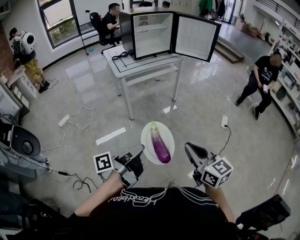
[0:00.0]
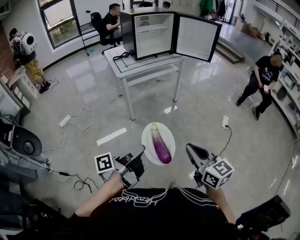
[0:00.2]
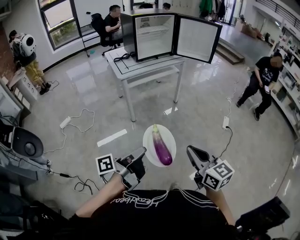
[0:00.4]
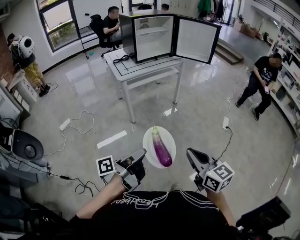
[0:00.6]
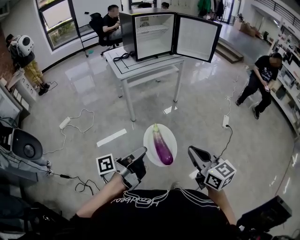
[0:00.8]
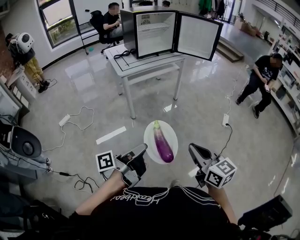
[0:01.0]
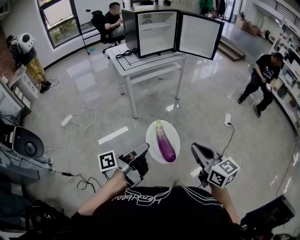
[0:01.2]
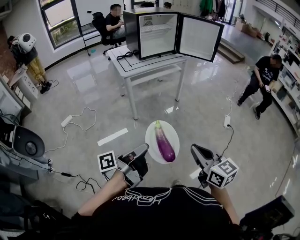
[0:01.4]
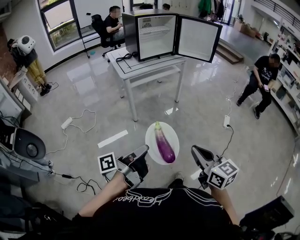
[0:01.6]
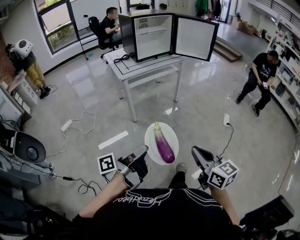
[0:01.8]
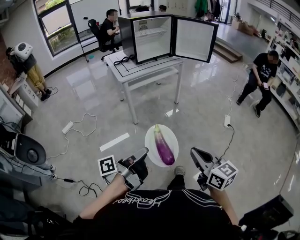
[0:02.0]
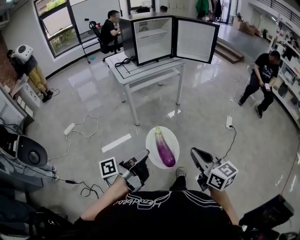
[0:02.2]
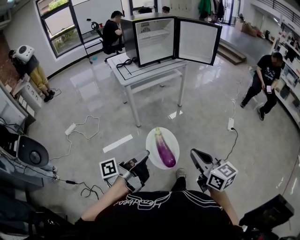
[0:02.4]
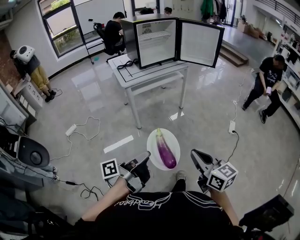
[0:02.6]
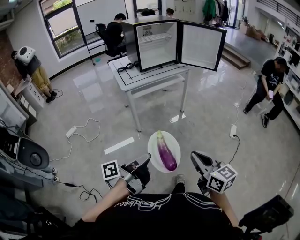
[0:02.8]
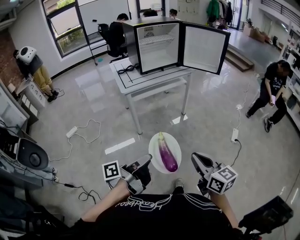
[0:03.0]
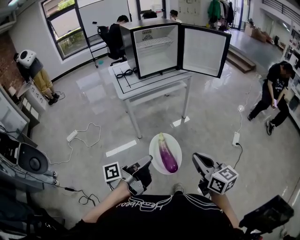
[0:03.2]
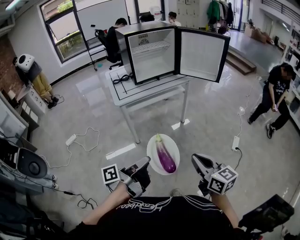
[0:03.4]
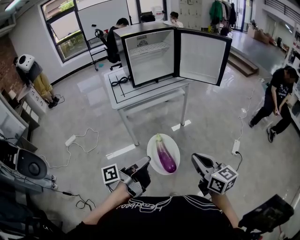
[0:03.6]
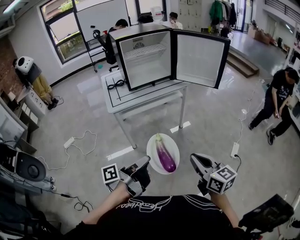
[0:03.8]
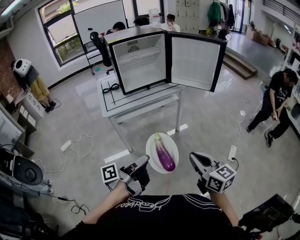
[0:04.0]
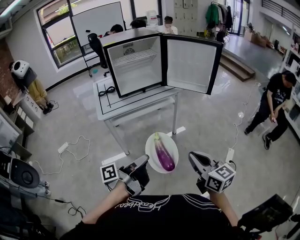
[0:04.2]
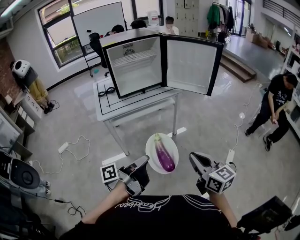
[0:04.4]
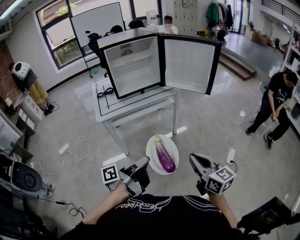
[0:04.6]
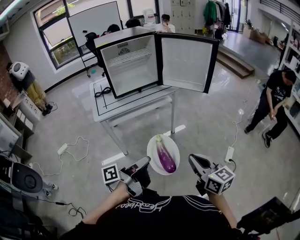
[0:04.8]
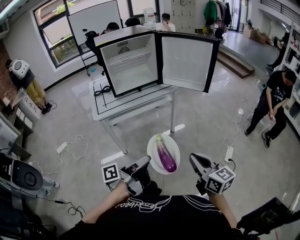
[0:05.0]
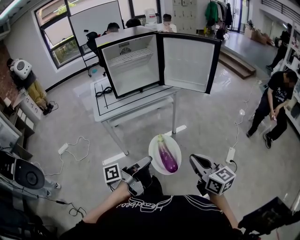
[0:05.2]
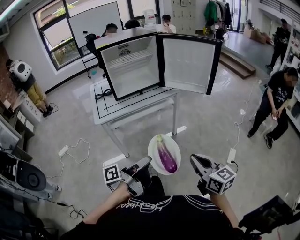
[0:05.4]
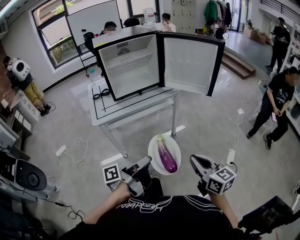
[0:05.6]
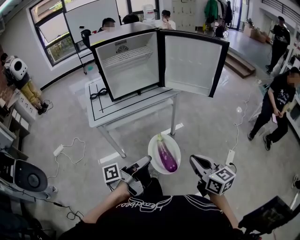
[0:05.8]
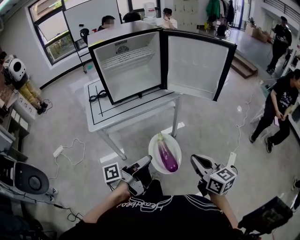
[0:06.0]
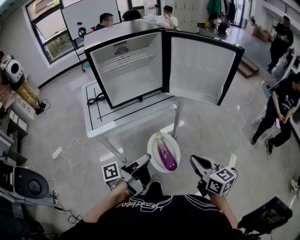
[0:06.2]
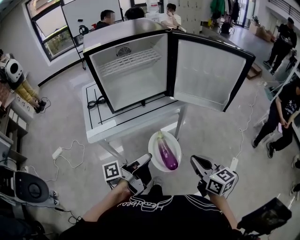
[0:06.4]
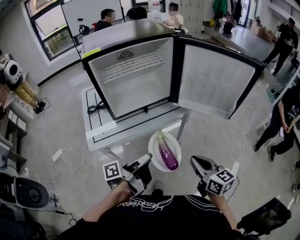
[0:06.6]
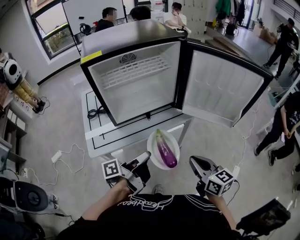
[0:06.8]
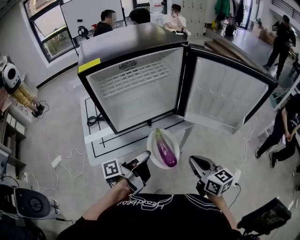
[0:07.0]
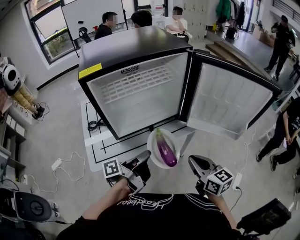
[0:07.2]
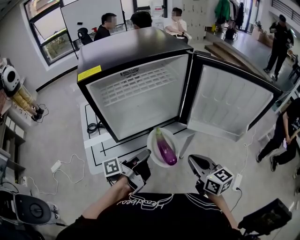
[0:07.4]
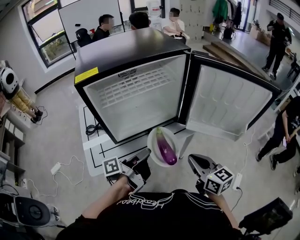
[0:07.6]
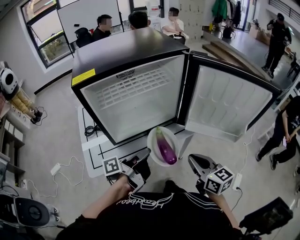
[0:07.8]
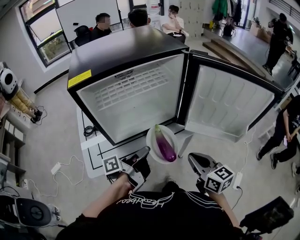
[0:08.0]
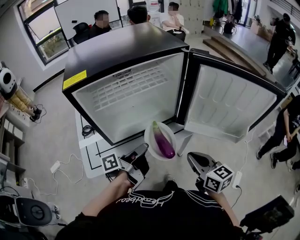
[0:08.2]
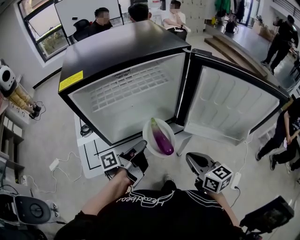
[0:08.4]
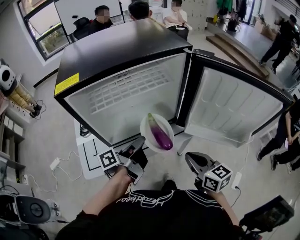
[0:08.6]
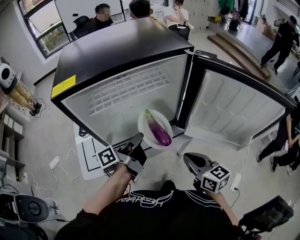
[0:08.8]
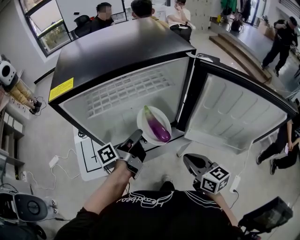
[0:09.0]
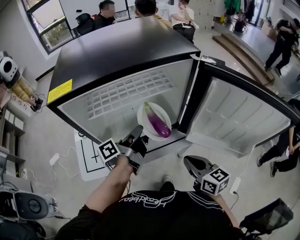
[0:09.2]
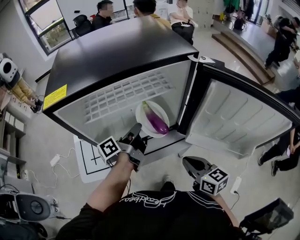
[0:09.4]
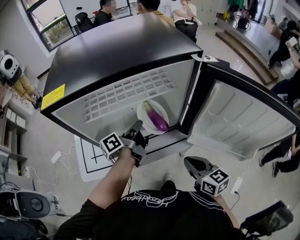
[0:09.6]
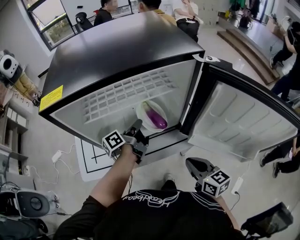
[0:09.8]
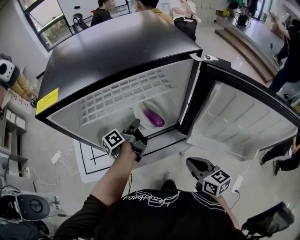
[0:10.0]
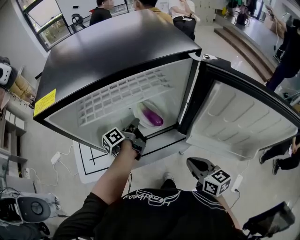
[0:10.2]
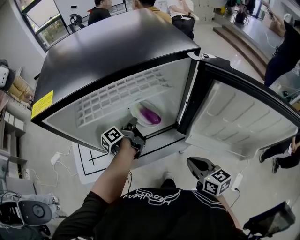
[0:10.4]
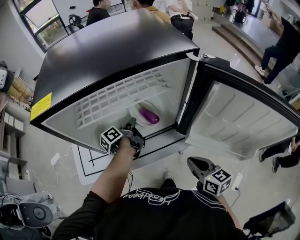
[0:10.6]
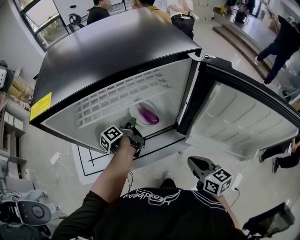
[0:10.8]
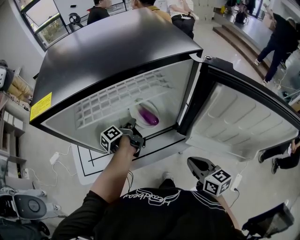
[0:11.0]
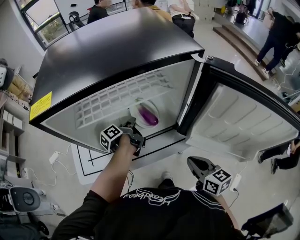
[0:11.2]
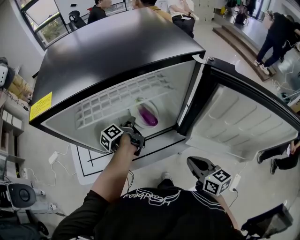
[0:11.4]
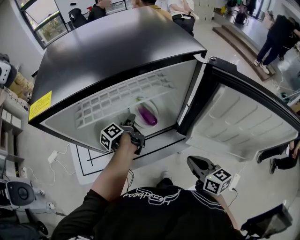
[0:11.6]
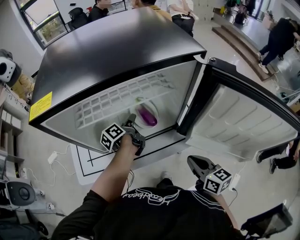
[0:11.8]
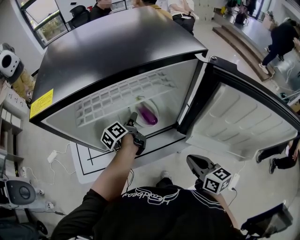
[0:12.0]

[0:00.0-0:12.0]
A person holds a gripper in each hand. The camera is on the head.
0:01.6 to 0:03.0: The right gripper changes place by some 15 cm.
0:03.0 to 0:04.4: The right gripper ends up about 30 cm from where it was.
0:04.4 to 0:06.0: The right gripper moves approximately 15 cm.
0:06.0 to 0:07.6: The right gripper ends up some 35 cm from where it was.
0:07.6 to 0:09.0: The right gripper moves about 10 cm.
0:09.0 to 0:10.4: The right gripper changes place by roughly 5 cm.

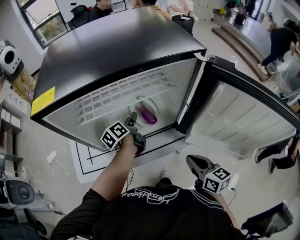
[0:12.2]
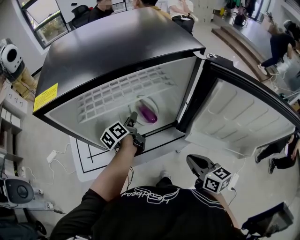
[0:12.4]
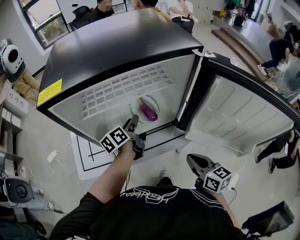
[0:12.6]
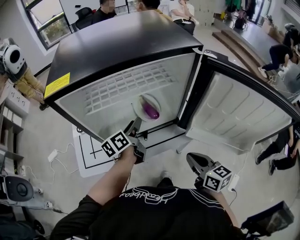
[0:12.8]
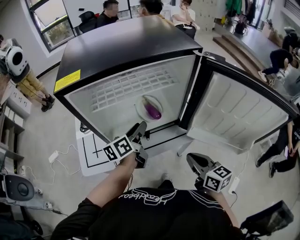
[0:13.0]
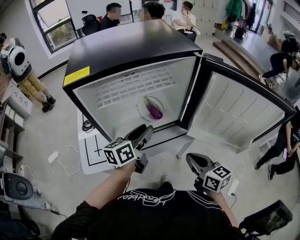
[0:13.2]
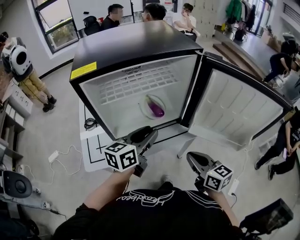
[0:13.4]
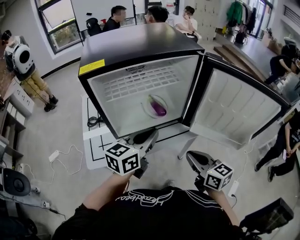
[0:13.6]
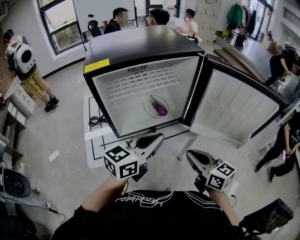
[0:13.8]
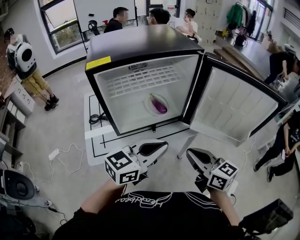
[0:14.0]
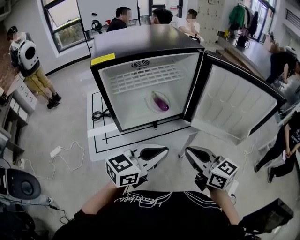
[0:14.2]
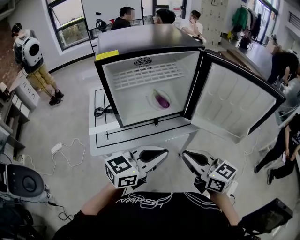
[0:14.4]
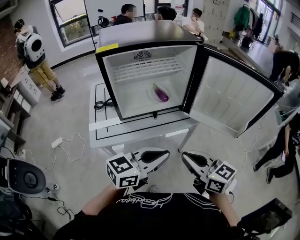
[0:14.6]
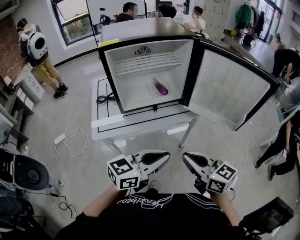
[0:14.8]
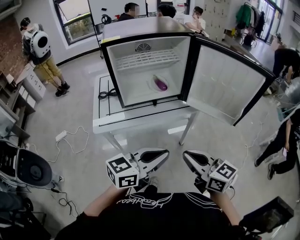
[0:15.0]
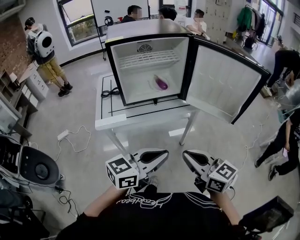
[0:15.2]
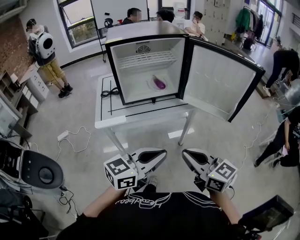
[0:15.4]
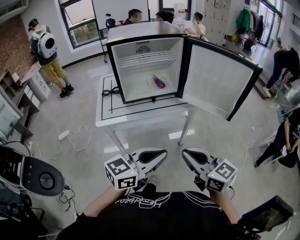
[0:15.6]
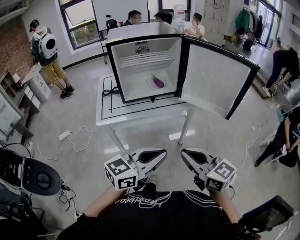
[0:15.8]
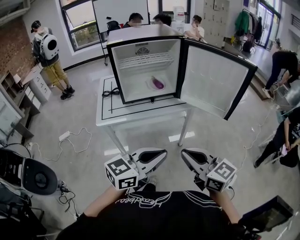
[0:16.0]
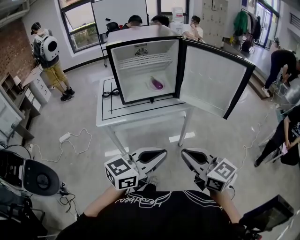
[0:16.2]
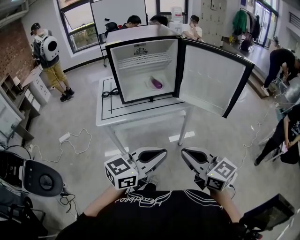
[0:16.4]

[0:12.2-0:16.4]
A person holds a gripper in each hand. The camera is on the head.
0:12.2 to 0:13.6: The right gripper changes place by approximately 10 cm.
0:13.6 to 0:15.0: The right gripper shifts by some 20 cm.
0:15.0 to 0:16.4: The right gripper ends up approximately 10 cm from where it was.

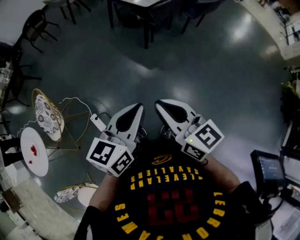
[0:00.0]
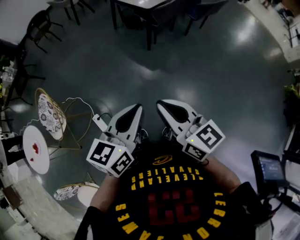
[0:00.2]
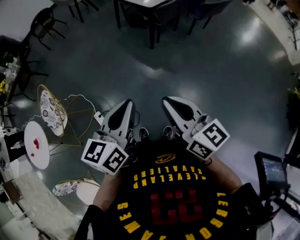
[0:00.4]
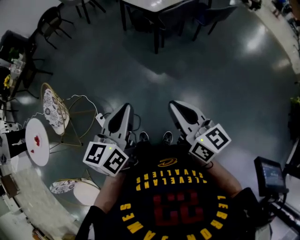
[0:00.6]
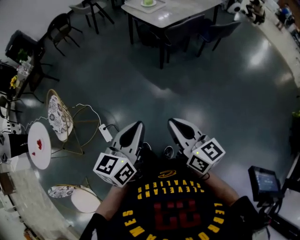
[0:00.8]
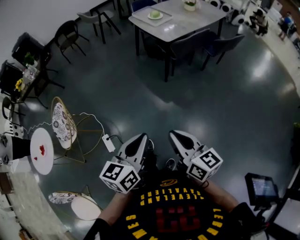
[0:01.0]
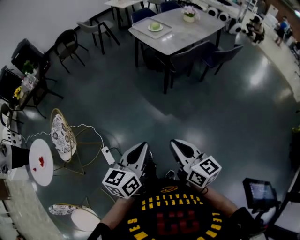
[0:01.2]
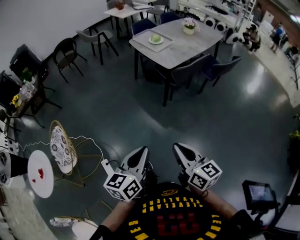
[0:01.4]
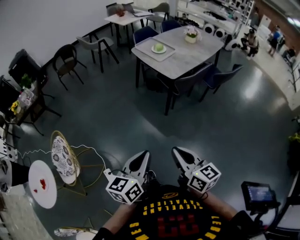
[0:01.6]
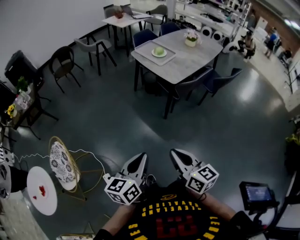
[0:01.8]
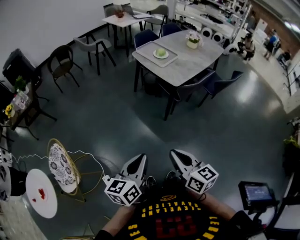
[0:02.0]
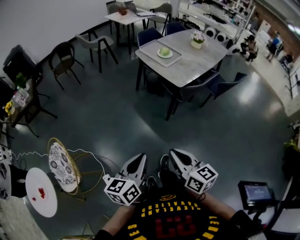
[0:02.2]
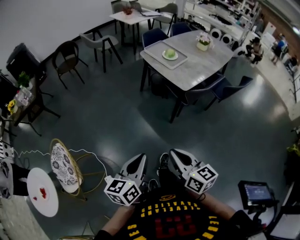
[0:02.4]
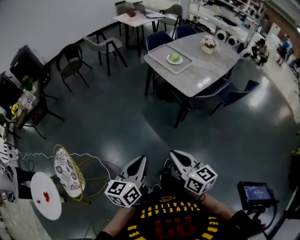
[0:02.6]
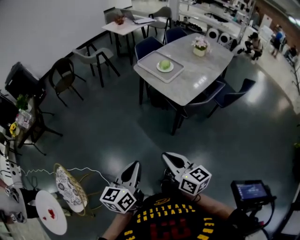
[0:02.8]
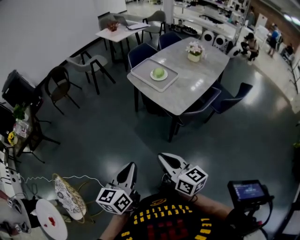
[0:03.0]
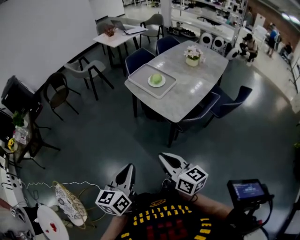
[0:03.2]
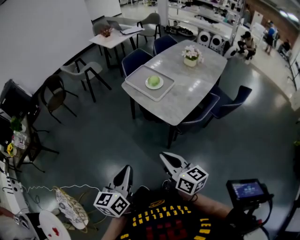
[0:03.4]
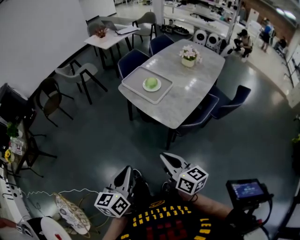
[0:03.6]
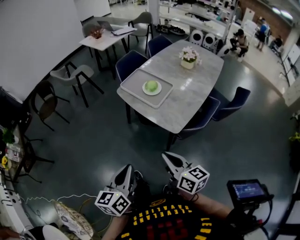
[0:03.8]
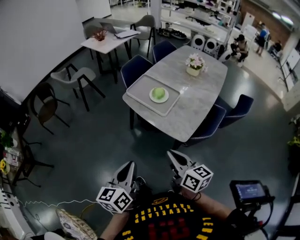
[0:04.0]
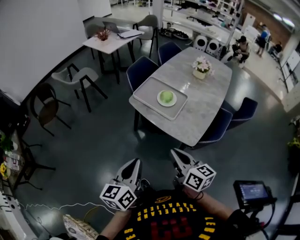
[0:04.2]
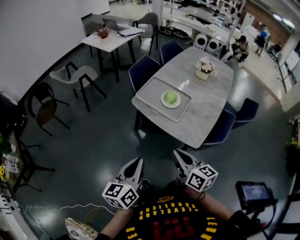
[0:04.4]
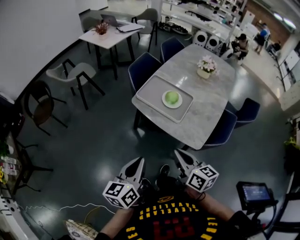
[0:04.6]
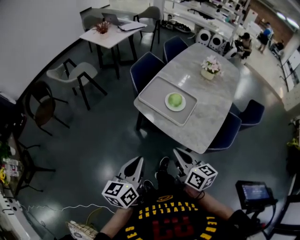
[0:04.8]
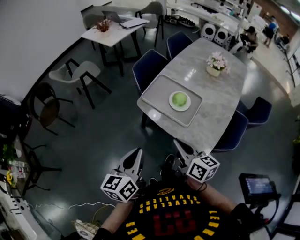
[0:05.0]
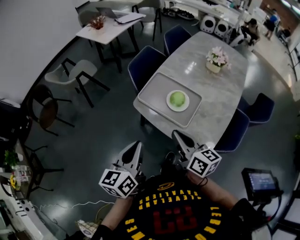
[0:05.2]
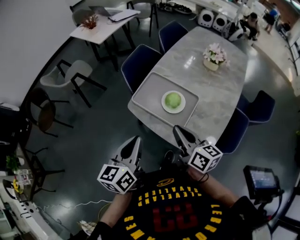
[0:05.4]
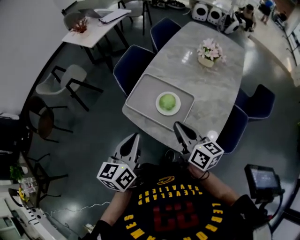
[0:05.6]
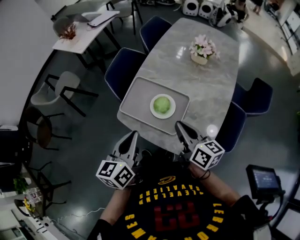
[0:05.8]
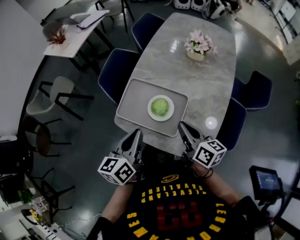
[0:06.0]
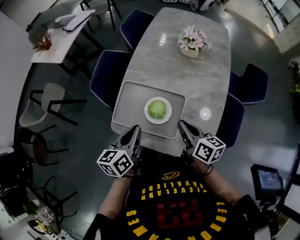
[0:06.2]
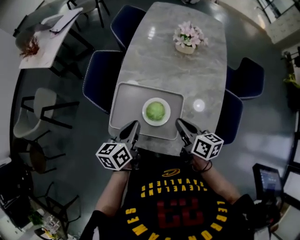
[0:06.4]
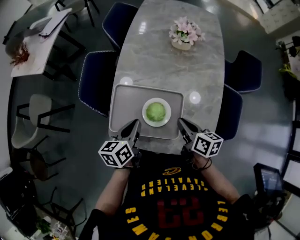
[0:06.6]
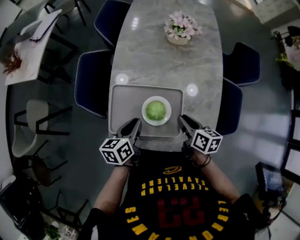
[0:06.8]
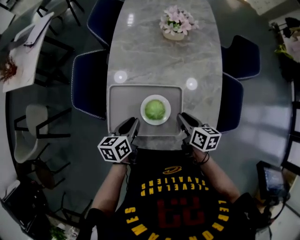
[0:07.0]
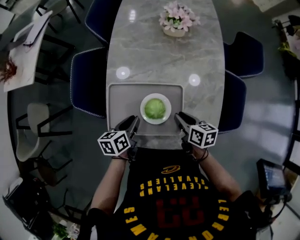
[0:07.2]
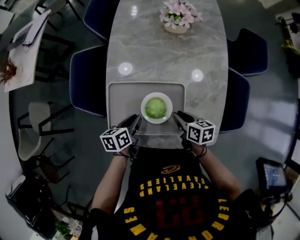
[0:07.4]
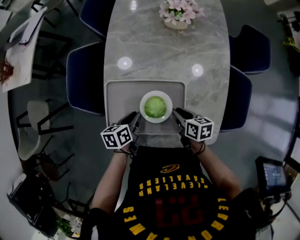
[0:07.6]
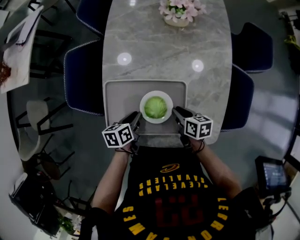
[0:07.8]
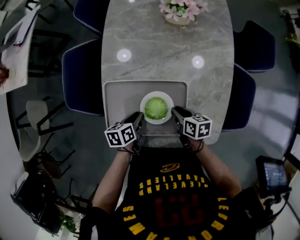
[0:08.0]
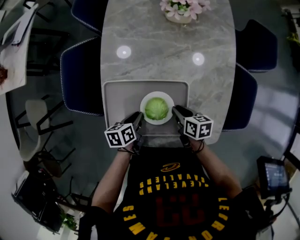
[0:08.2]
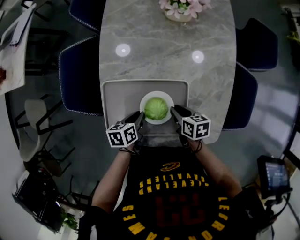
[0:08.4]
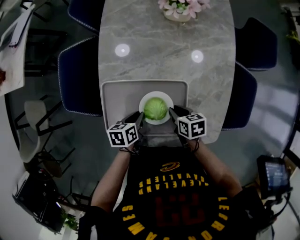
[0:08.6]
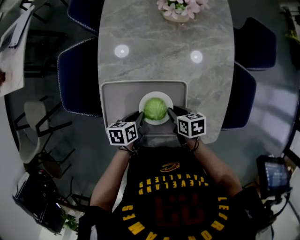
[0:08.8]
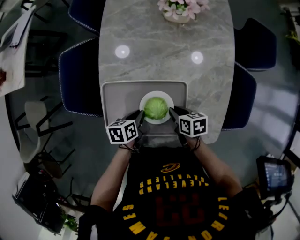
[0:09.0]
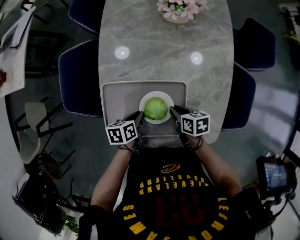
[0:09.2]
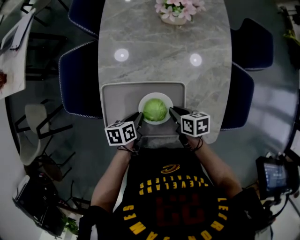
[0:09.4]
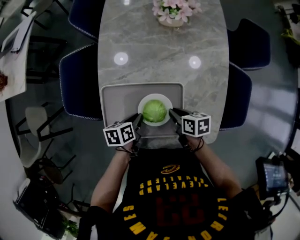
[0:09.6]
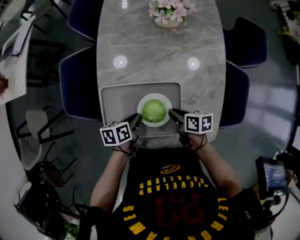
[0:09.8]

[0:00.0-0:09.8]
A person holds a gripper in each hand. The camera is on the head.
0:00.0 to 0:01.4: The right gripper heads forward and to the right, covering about 15 cm. The left gripper travels forward by approximately 10 cm.
0:01.4 to 0:02.8: Both grippers move forward, approximately 30 cm.
0:02.8 to 0:04.2: Both grippers move forward, roughly 35 cm.
0:04.2 to 0:05.6: The two grippers go some 30 cm forward.
0:05.6 to 0:07.0: The left gripper shifts by approximately 30 cm, and turns by roughly 40 degrees. The right gripper shifts roughly 20 cm downward, and changes its angle by roughly 40 degrees.
0:07.0 to 0:08.4: Both grippers move downward, approximately 10 cm. The left gripper changes its angle by roughly 20 degrees.
0:08.4 to 0:09.8: The grippers make only small movements.
